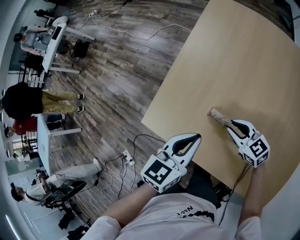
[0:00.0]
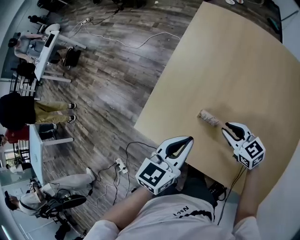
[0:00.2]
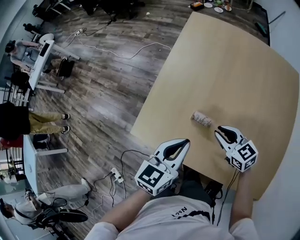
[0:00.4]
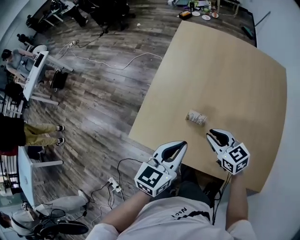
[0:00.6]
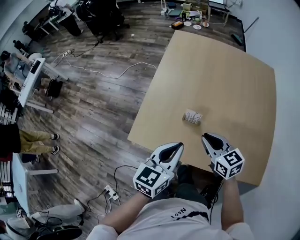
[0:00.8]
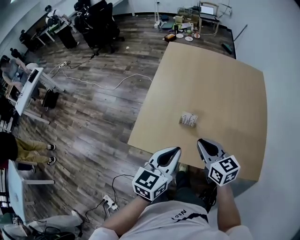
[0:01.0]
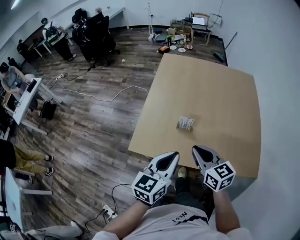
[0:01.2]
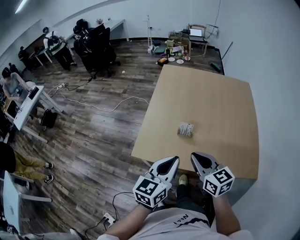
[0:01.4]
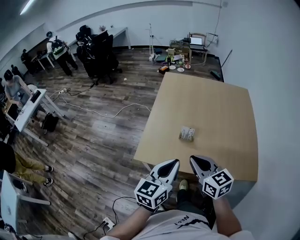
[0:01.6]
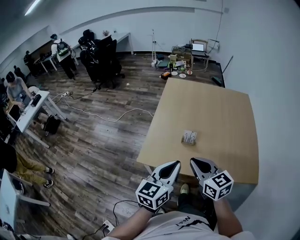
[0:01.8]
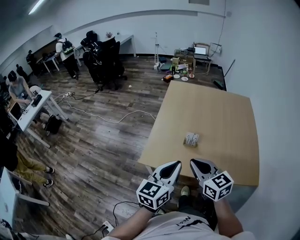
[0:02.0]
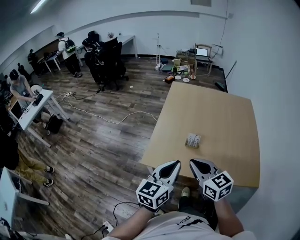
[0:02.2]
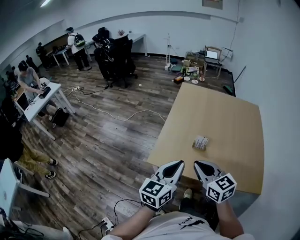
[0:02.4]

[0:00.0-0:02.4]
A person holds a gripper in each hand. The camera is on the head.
0:00.0 to 0:01.2: The left gripper shifts approximately 20 cm backward and upward, while the right gripper travels upward and backward by approximately 30 cm, and turns by about 40 degrees.
0:01.2 to 0:02.4: The two grippers go approximately 15 cm to the left, upward and backward.

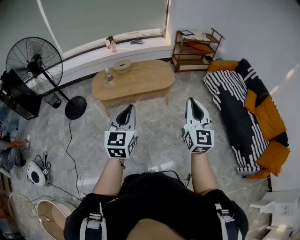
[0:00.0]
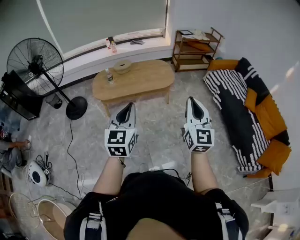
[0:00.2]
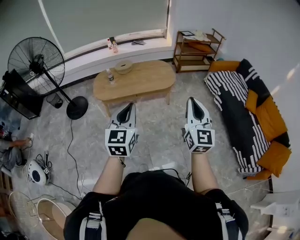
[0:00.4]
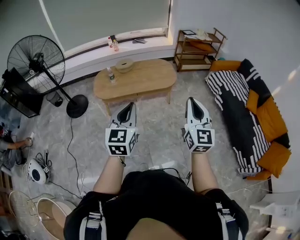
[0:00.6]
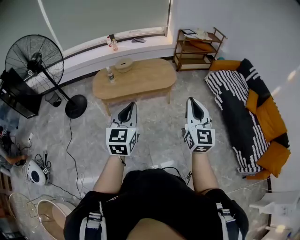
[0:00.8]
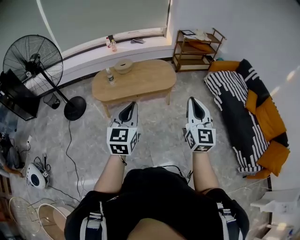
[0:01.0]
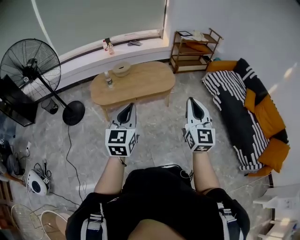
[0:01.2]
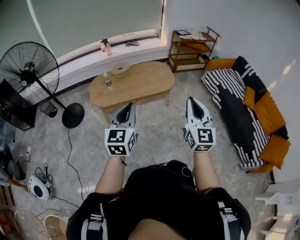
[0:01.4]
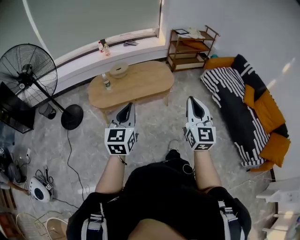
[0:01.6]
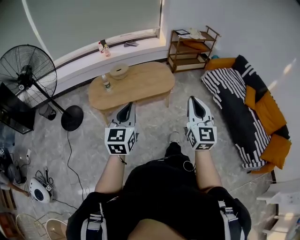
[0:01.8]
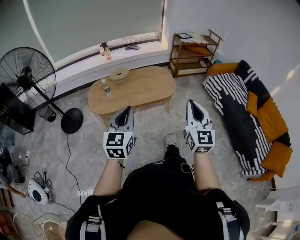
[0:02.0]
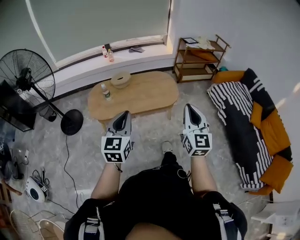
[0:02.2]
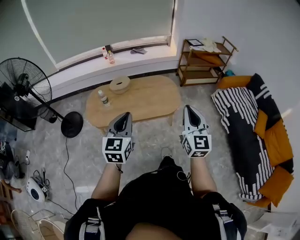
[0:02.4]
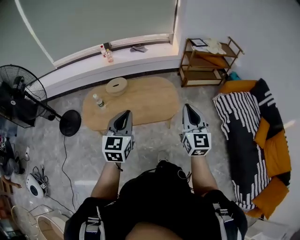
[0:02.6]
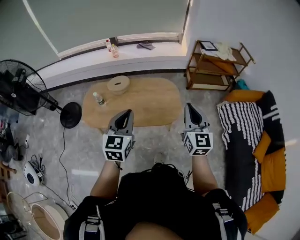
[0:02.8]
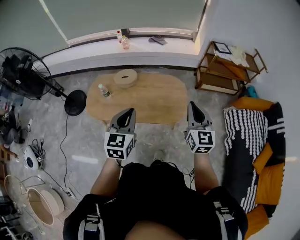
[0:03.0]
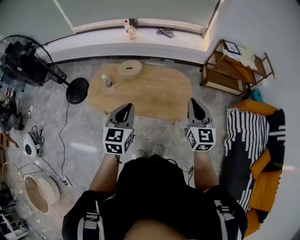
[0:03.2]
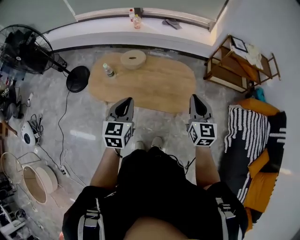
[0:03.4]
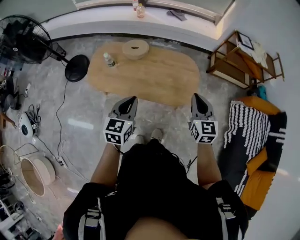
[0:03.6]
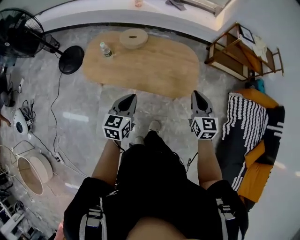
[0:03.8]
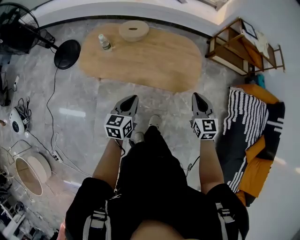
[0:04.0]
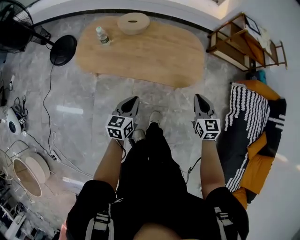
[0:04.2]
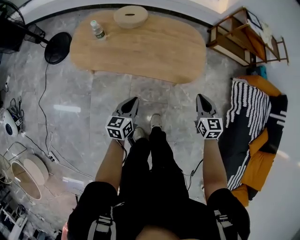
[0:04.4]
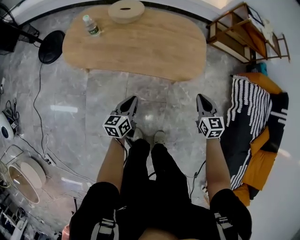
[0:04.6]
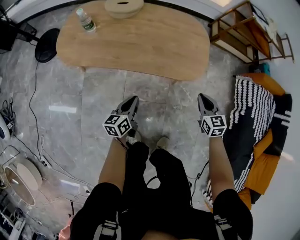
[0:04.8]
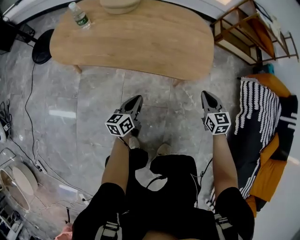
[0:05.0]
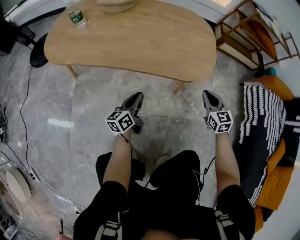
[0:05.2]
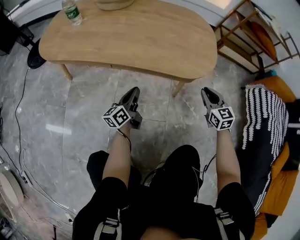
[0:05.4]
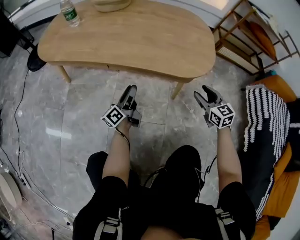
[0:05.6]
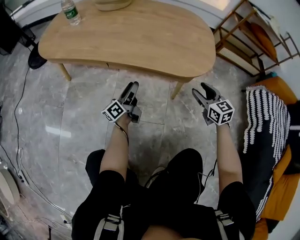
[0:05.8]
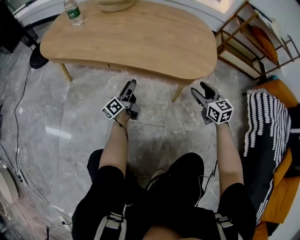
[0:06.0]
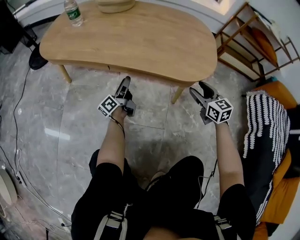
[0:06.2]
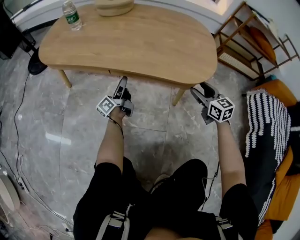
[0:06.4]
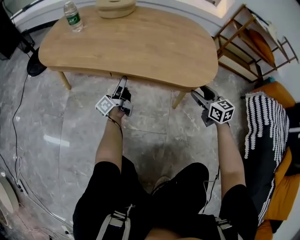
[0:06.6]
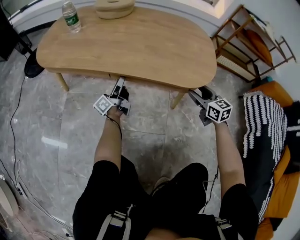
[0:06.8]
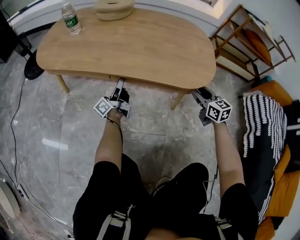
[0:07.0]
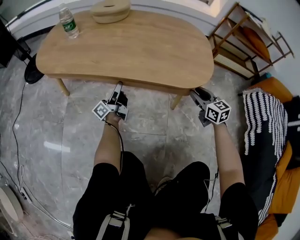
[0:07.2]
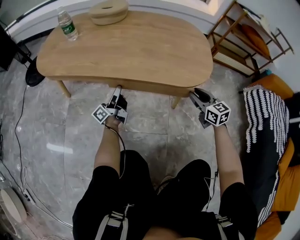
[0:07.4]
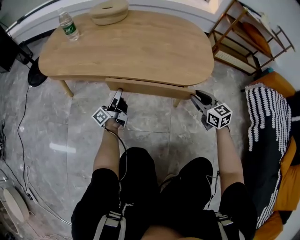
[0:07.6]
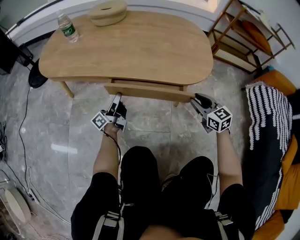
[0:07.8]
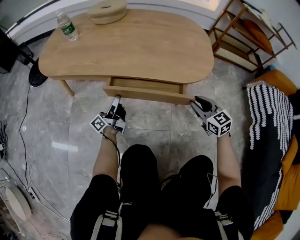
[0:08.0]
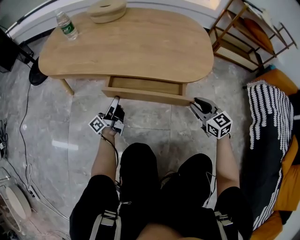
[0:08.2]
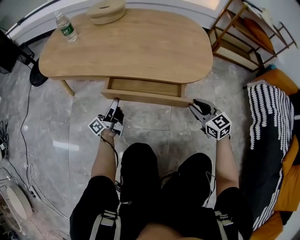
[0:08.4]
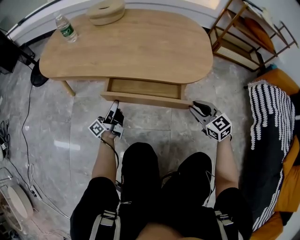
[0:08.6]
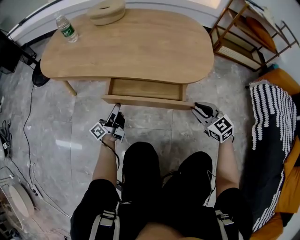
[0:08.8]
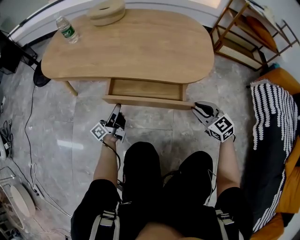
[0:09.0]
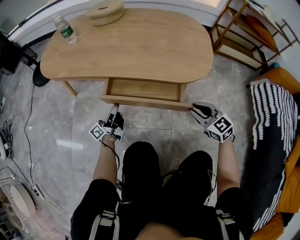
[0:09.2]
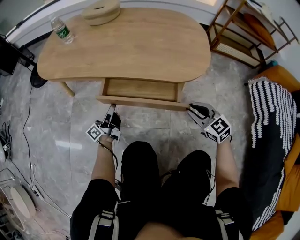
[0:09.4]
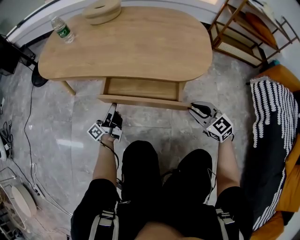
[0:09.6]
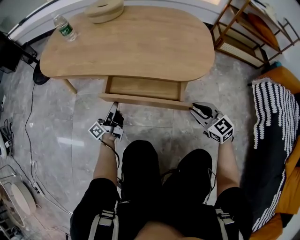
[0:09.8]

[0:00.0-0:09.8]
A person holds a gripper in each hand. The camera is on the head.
0:00.0 to 0:01.4: The two grippers go roughly 10 cm to the left and forward.
0:01.4 to 0:02.8: The two grippers travel together, forward, approximately 50 cm.
0:02.8 to 0:04.2: Both grippers move downward, roughly 30 cm. The right gripper swivels approximately 30 degrees. The left gripper swivels about 30 degrees.
0:04.2 to 0:05.6: The two grippers go about 50 cm downward. The right gripper opens its fingers. The left gripper tips its fingers upward by roughly 30 degrees, and opens up.
0:05.6 to 0:07.0: The left gripper goes roughly 10 cm forward and to the left; the right gripper heads forward, covering some 5 cm.
0:07.0 to 0:08.4: The two grippers go approximately 10 cm backward.
0:08.4 to 0:09.8: The grippers make only small movements.

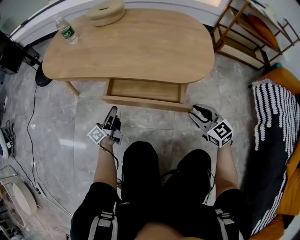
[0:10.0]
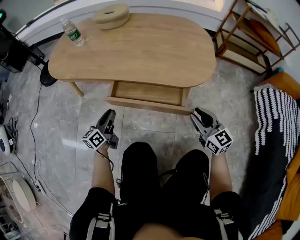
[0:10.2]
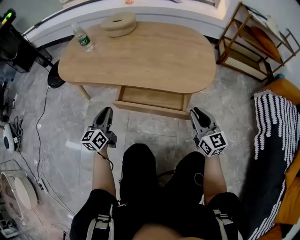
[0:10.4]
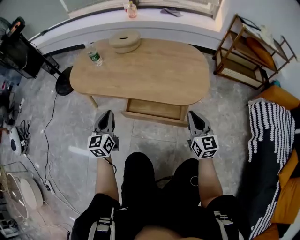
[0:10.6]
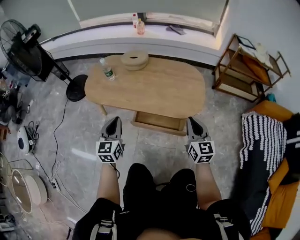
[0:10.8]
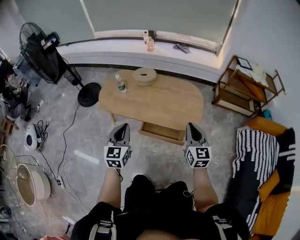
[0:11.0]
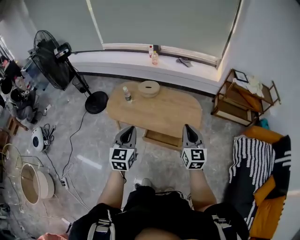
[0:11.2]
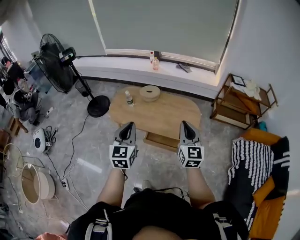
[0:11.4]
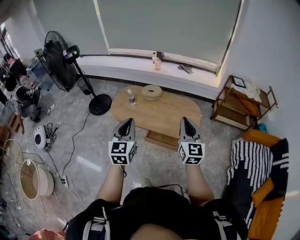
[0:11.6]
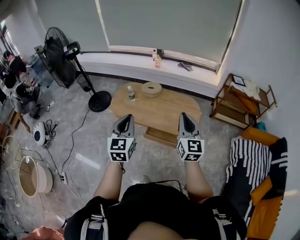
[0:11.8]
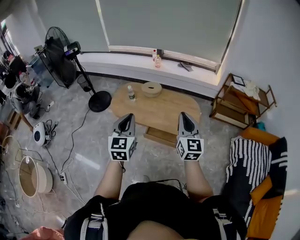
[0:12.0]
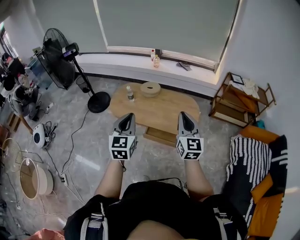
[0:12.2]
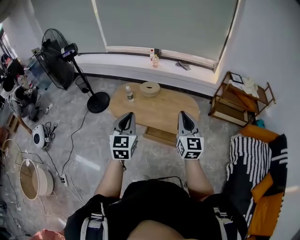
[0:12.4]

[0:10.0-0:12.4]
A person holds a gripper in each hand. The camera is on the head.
0:10.0 to 0:11.2: The grippers both shift upward by approximately 70 cm. The right gripper turns by about 30 degrees, and closes. Meanwhile the left gripper rolls clockwise, seen from behind, by approximately 70 degrees, and closes.
0:11.2 to 0:12.4: The left gripper shifts some 10 cm upward, while the right gripper is displaced upward and backward by roughly 10 cm.

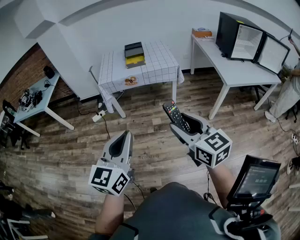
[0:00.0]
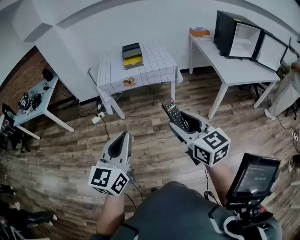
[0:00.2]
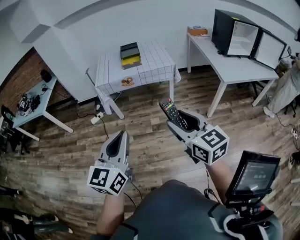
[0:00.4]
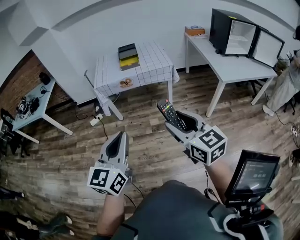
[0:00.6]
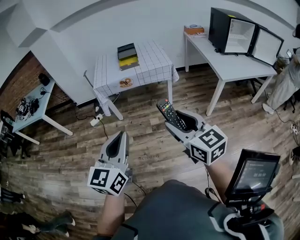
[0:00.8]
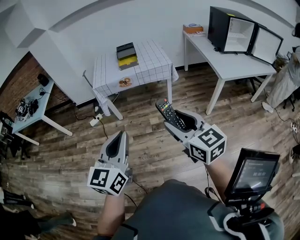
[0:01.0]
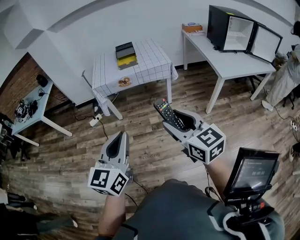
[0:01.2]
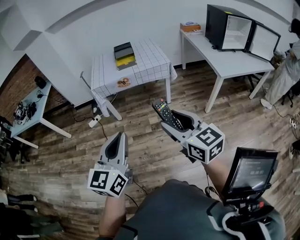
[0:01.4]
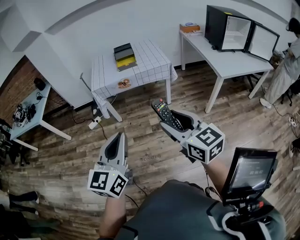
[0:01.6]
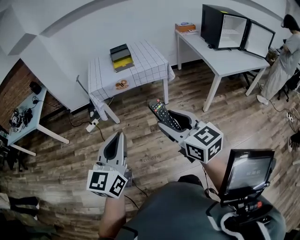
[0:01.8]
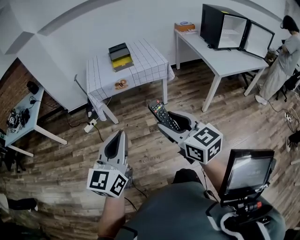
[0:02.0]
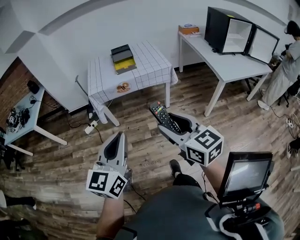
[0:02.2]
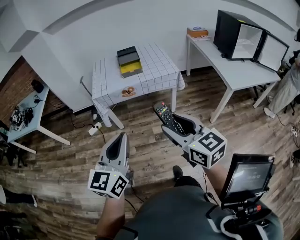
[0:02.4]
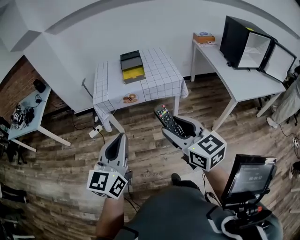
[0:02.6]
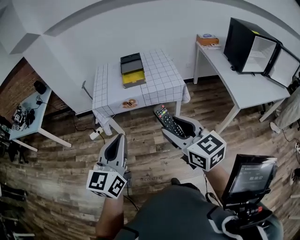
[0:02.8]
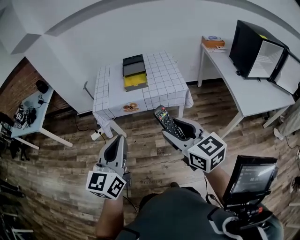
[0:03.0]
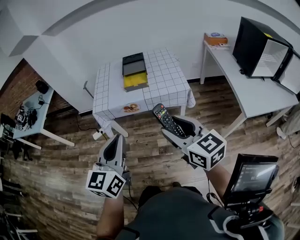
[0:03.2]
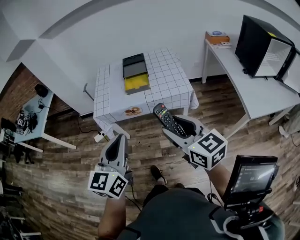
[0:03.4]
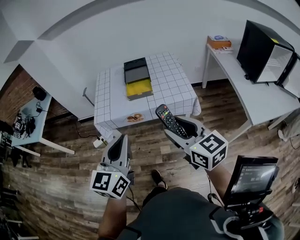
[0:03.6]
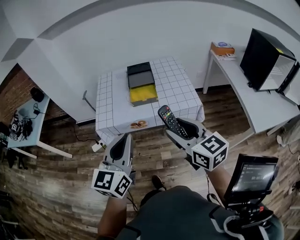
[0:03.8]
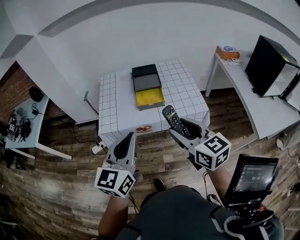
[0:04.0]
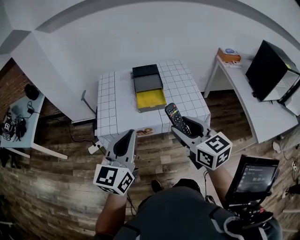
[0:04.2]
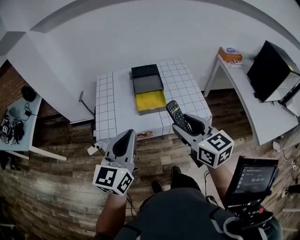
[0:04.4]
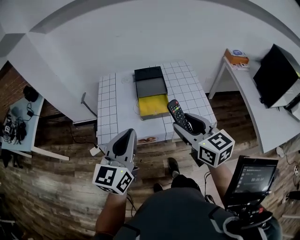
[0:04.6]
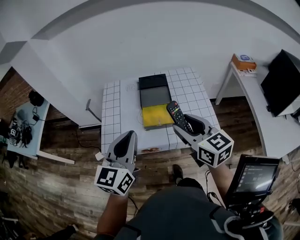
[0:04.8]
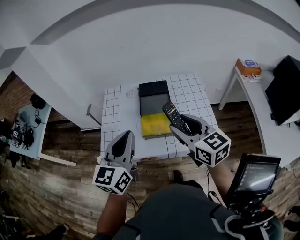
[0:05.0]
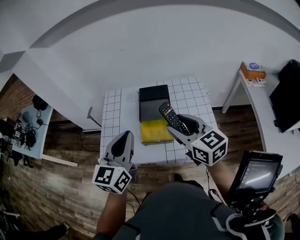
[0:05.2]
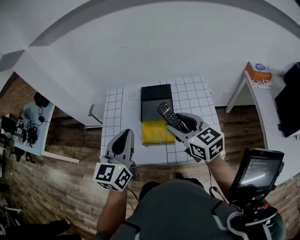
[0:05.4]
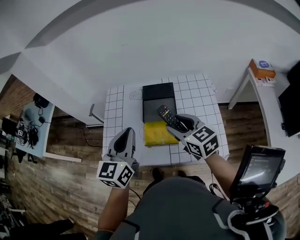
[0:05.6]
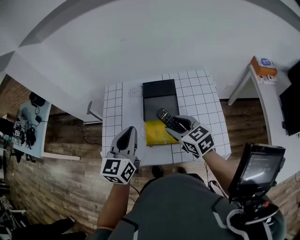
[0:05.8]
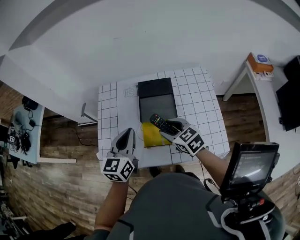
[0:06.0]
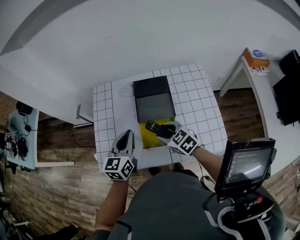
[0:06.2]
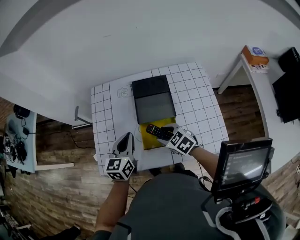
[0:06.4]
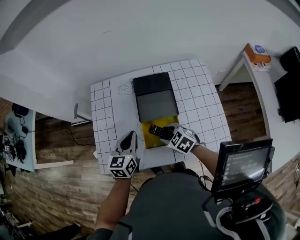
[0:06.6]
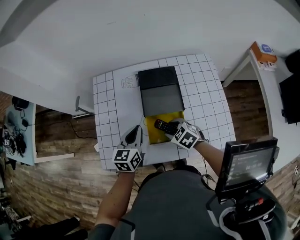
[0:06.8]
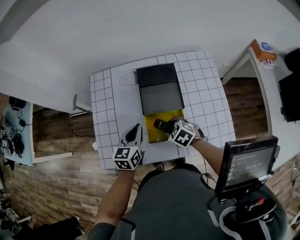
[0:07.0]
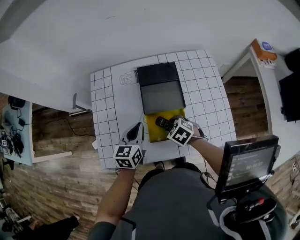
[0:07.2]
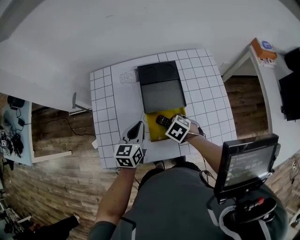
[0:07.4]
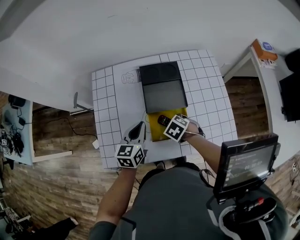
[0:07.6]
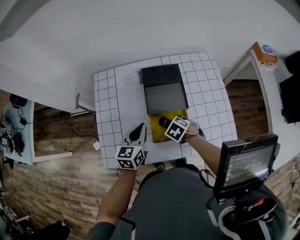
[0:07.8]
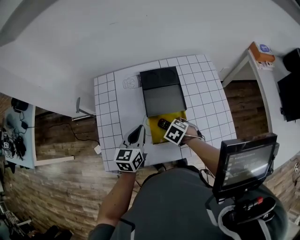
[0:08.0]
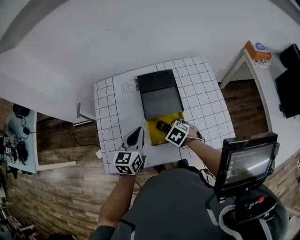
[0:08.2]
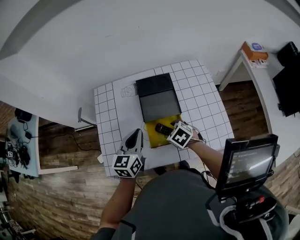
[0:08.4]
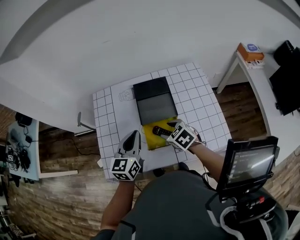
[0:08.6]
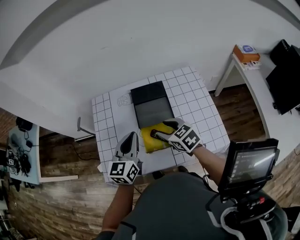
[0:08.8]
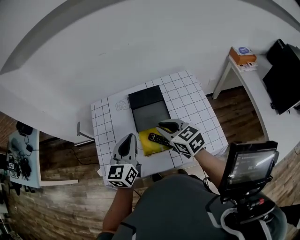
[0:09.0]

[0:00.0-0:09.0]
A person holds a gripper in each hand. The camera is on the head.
0:00.0 to 0:01.6: The right gripper moves about 5 cm.
0:01.6 to 0:03.0: The two grippers go roughly 25 cm forward.
0:03.0 to 0:04.4: The grippers both shift forward by roughly 30 cm.
0:04.4 to 0:06.0: The left gripper shifts some 30 cm forward; the right gripper is displaced forward and downward by some 35 cm, and swivels roughly 30 degrees.
0:06.0 to 0:07.6: The grippers both shift downward by some 15 cm. The right gripper tips its fingers downward by some 40 degrees.
0:07.6 to 0:09.0: The grippers both shift upward by about 20 cm. The right gripper points its fingers approximately 50 degrees further upward, and closes its fingers.
